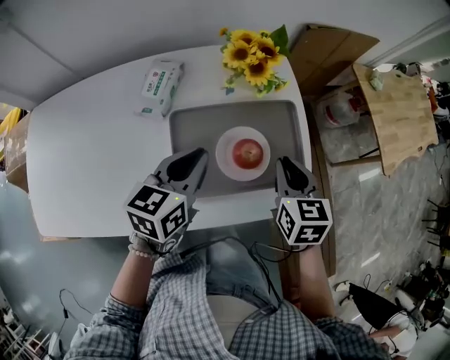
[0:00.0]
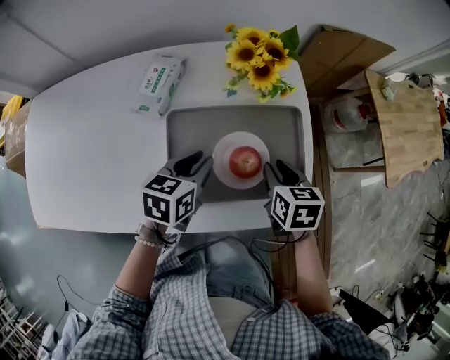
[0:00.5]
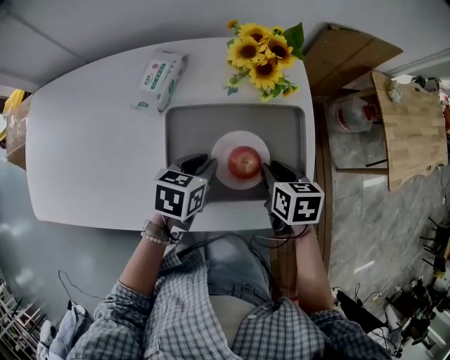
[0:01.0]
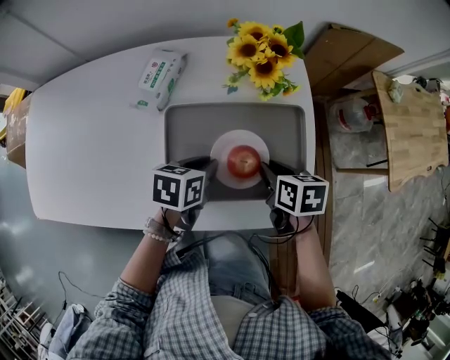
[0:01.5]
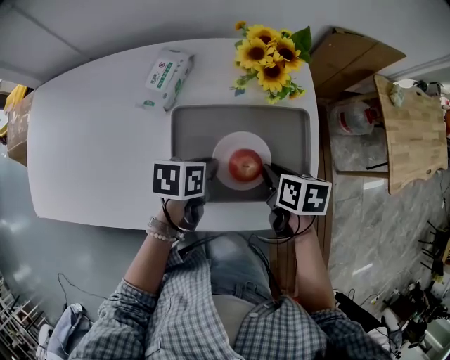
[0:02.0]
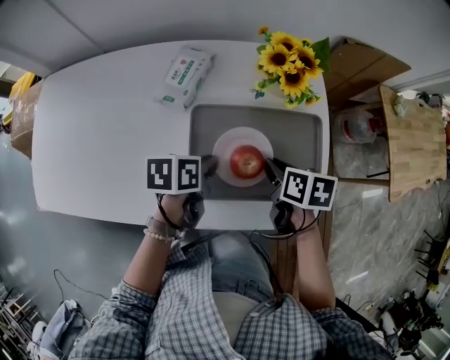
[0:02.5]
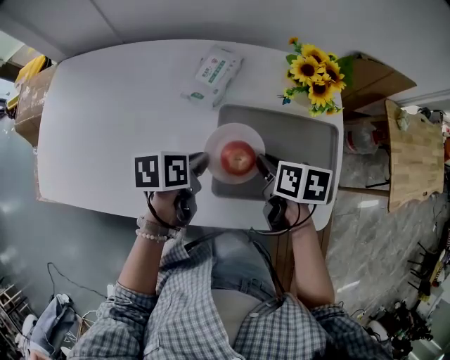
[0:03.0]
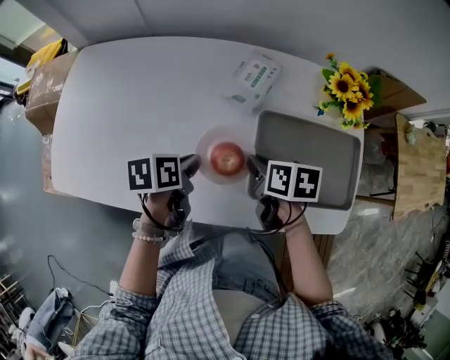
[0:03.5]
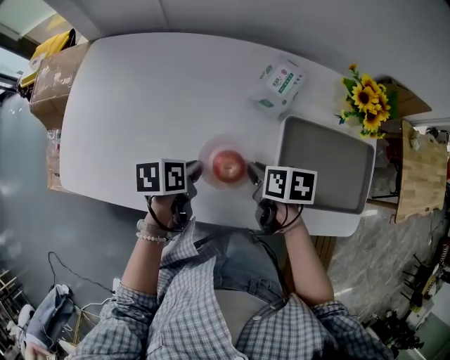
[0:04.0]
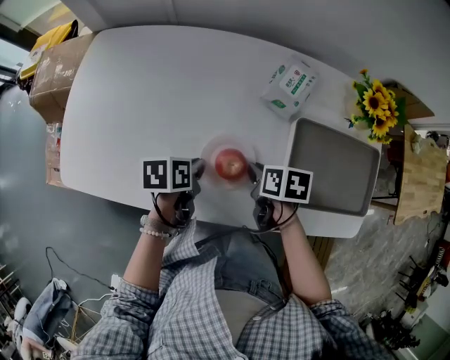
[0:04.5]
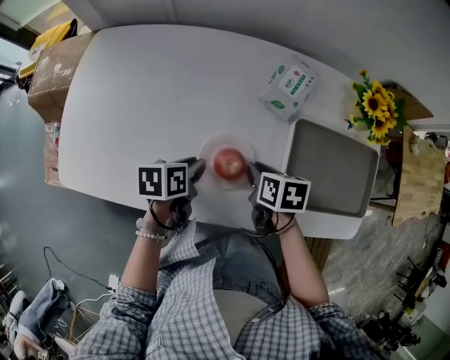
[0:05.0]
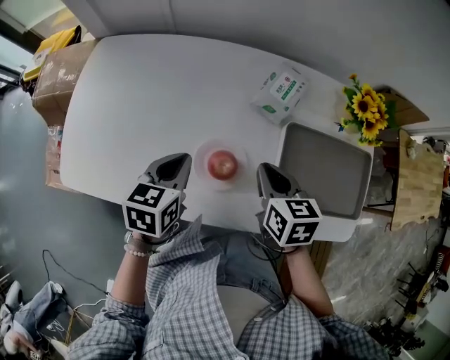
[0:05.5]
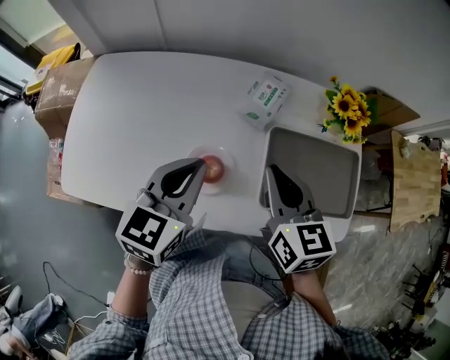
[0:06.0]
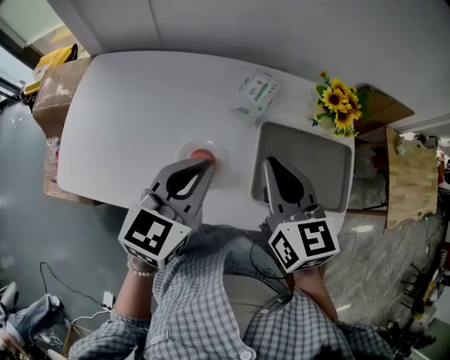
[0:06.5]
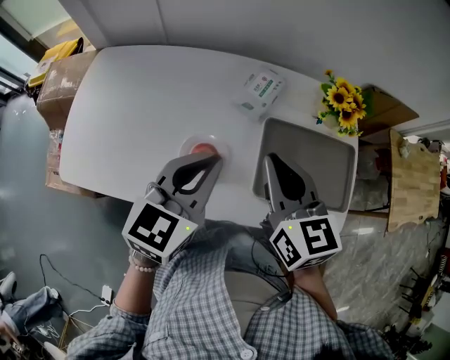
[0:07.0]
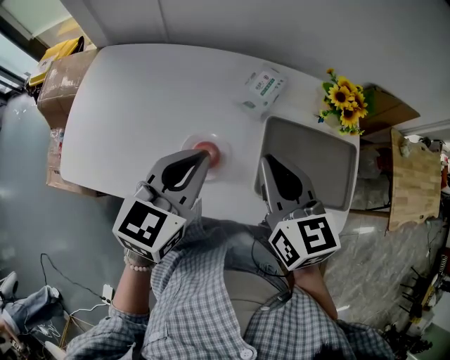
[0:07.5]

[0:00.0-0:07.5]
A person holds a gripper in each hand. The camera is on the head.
0:00.0 to 0:02.0: Both grippers travel together downward, roughly 10 cm. The right gripper rotates roughly 30 degrees, while the left gripper turns by about 40 degrees.
0:02.0 to 0:04.0: The two grippers go about 30 cm to the left.
0:04.0 to 0:05.5: The grippers both shift upward by some 10 cm. The right gripper swivels about 30 degrees. Meanwhile the left gripper rotates about 40 degrees.
0:05.5 to 0:07.5: The right gripper heads upward, covering about 15 cm, and swivels approximately 20 degrees; the left gripper shifts about 15 cm upward and to the right, and changes its angle by roughly 20 degrees.

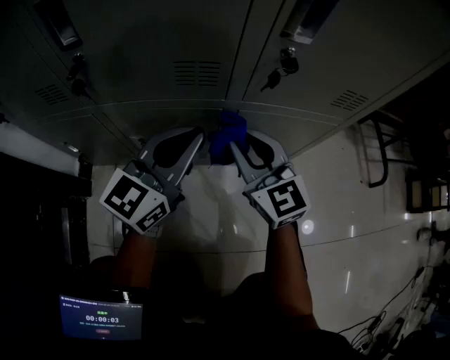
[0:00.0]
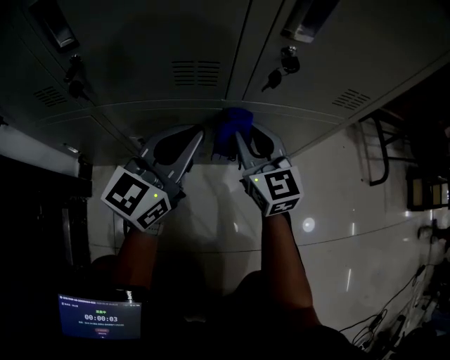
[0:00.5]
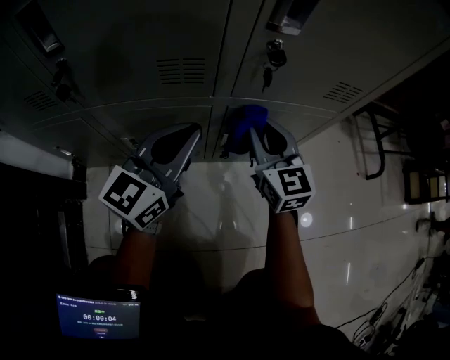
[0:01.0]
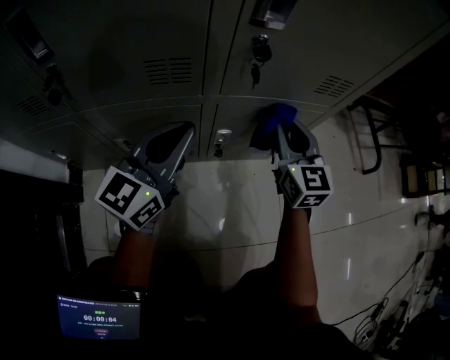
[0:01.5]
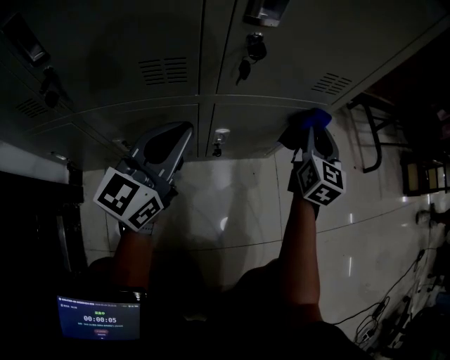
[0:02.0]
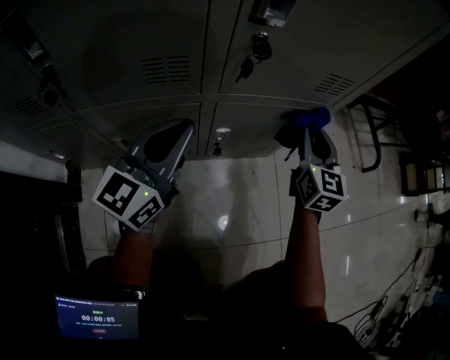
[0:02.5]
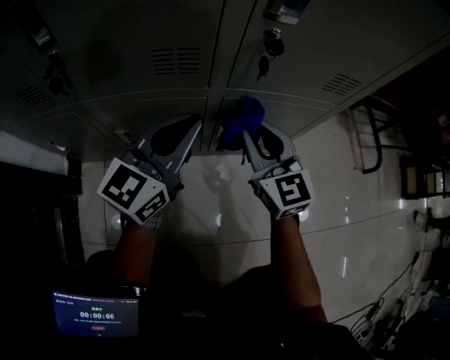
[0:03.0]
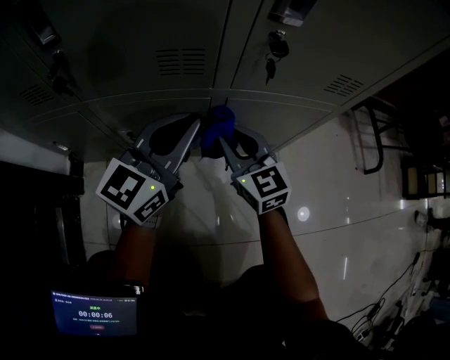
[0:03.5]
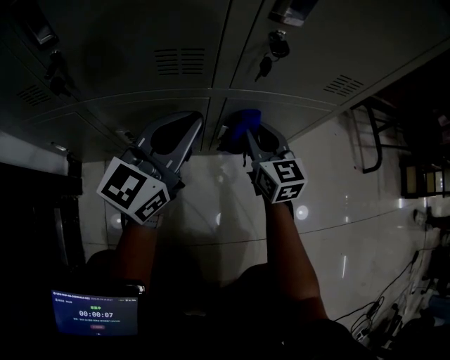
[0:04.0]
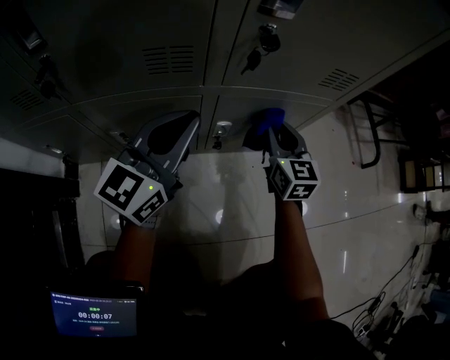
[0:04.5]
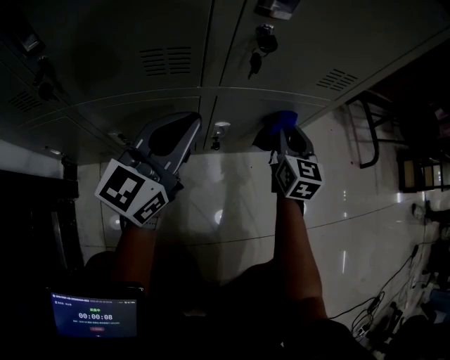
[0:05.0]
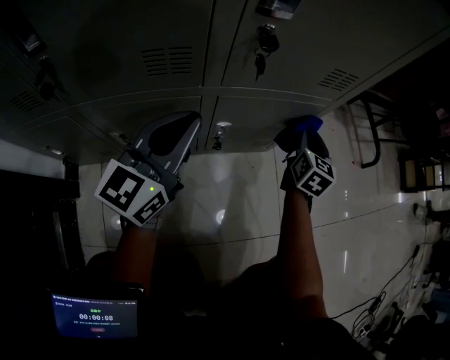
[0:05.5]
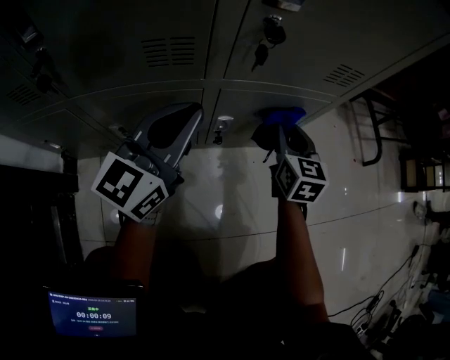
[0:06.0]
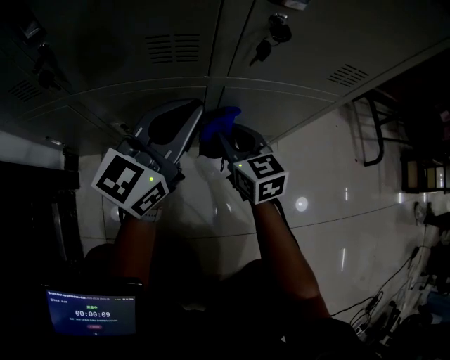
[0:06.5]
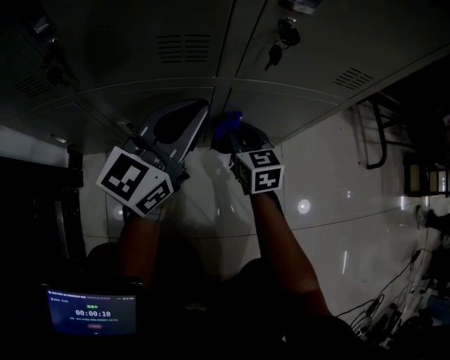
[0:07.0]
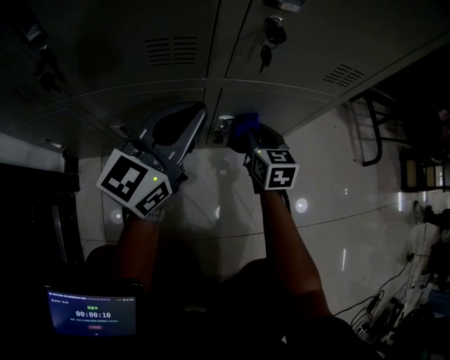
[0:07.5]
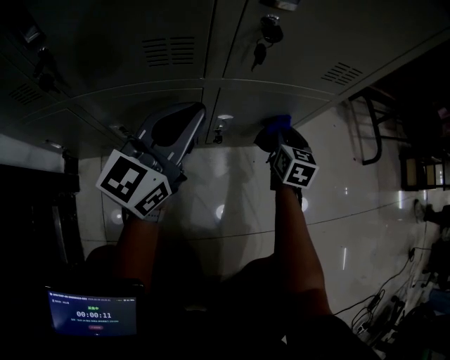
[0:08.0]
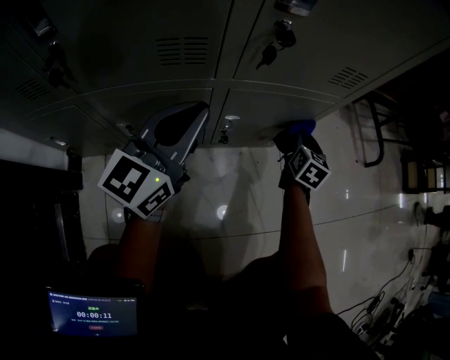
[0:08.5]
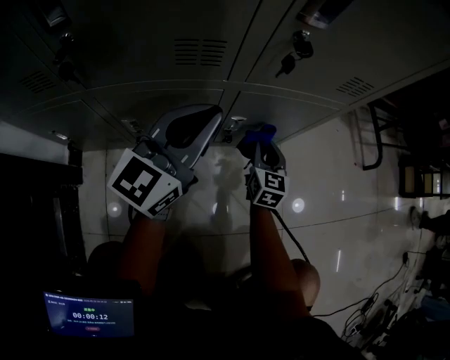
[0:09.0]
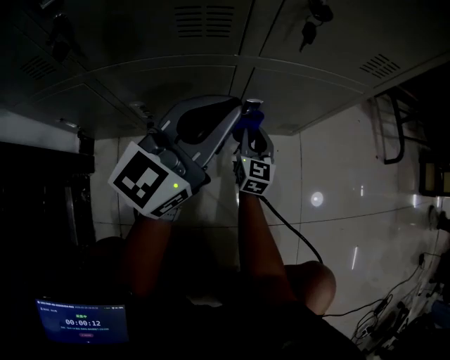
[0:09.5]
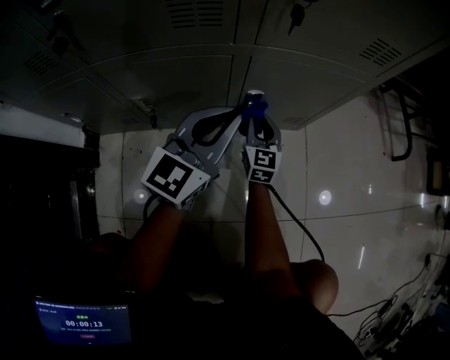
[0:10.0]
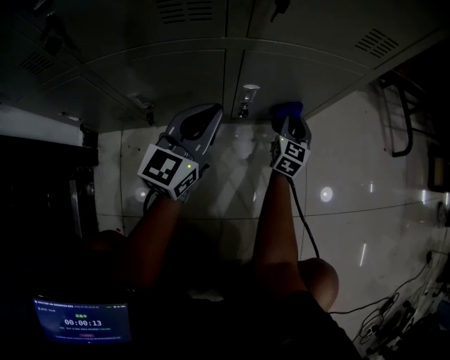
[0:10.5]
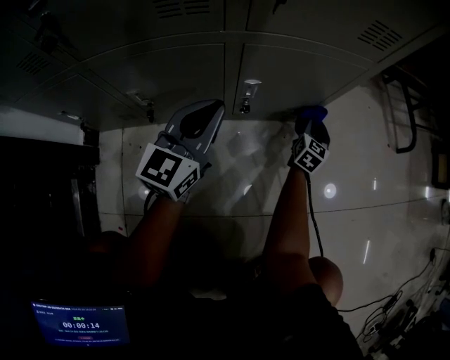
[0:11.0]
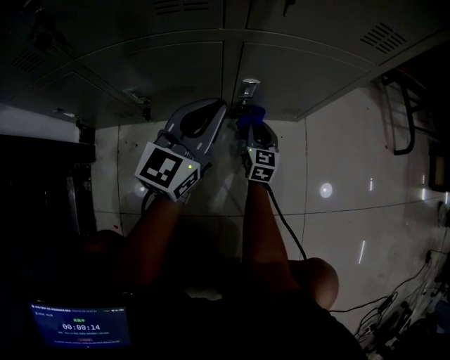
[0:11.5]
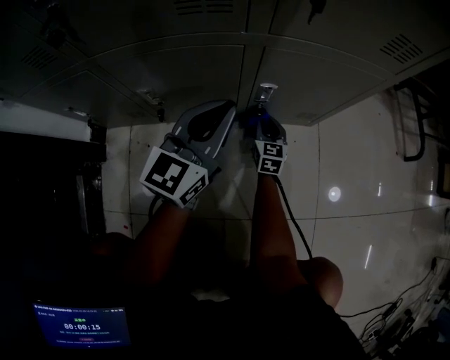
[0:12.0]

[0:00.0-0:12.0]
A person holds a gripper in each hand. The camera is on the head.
0:00.0 to 0:02.0: The right gripper heads to the right, covering about 25 cm, and changes its angle by approximately 50 degrees.
0:02.0 to 0:04.0: The right gripper heads to the left, covering approximately 20 cm, and rotates approximately 30 degrees.
0:04.0 to 0:06.0: The right gripper goes some 10 cm to the right, and rotates approximately 20 degrees.
0:06.0 to 0:08.0: The right gripper shifts approximately 10 cm downward, and moves about 15 cm to the left and comes back.
0:08.0 to 0:10.0: The left gripper heads downward, covering some 10 cm; the right gripper is displaced to the left, downward and backward by approximately 15 cm.
0:10.0 to 0:12.0: The right gripper heads downward, covering about 10 cm, and reaches some 20 cm to the right, then returns.

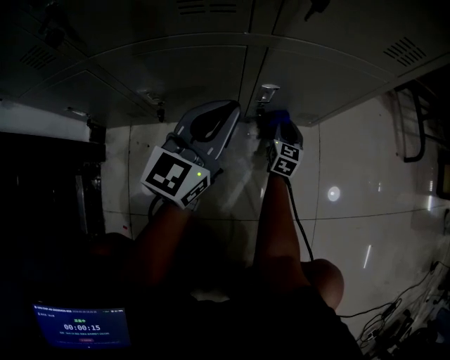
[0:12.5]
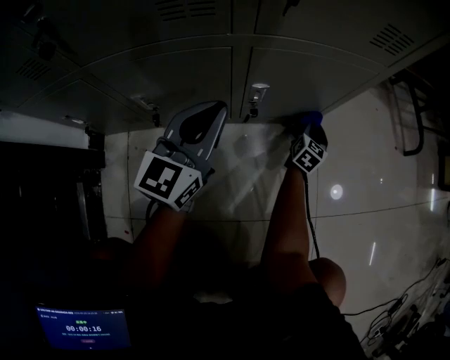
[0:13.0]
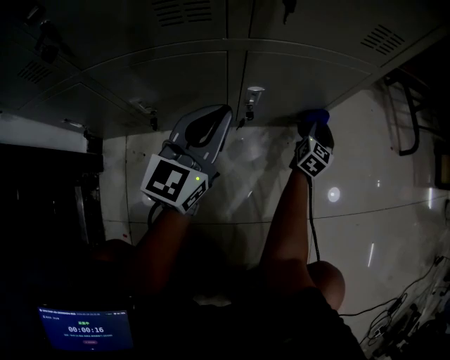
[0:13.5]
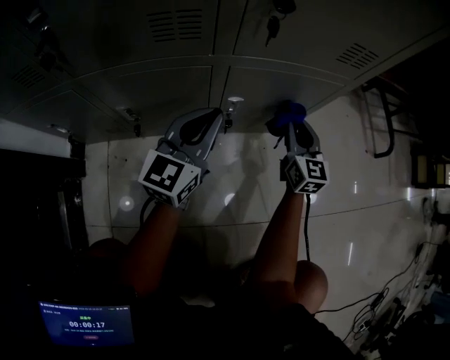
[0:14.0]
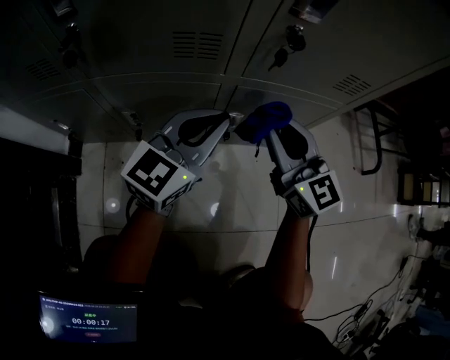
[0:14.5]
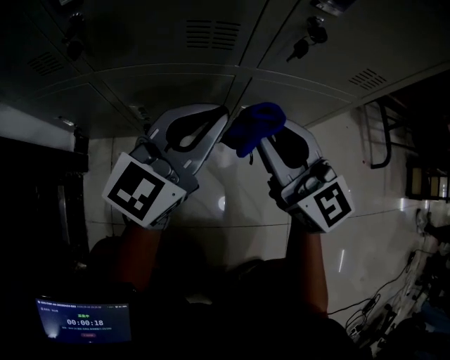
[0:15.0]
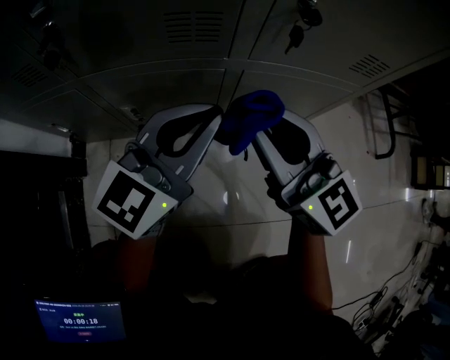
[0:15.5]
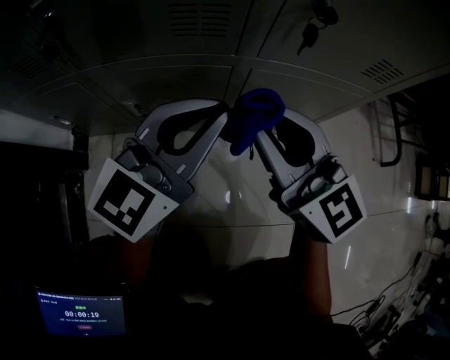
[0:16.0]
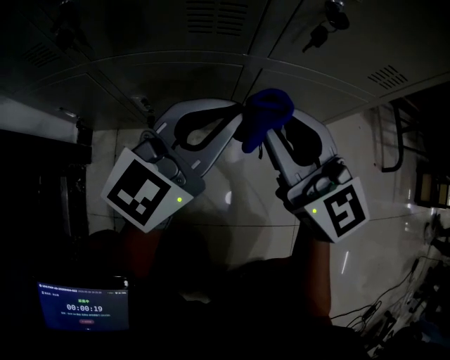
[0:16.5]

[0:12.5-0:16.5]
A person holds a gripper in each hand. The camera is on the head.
0:12.5 to 0:14.5: The right gripper shifts roughly 35 cm upward, and changes its angle by some 40 degrees, while the left gripper heads upward, covering about 5 cm.
0:14.5 to 0:16.5: The right gripper moves to the left, approximately 5 cm.

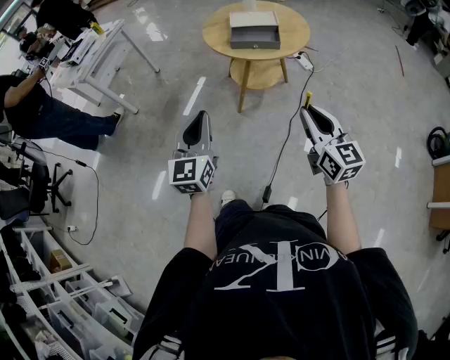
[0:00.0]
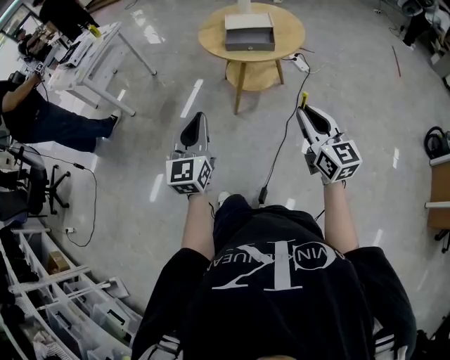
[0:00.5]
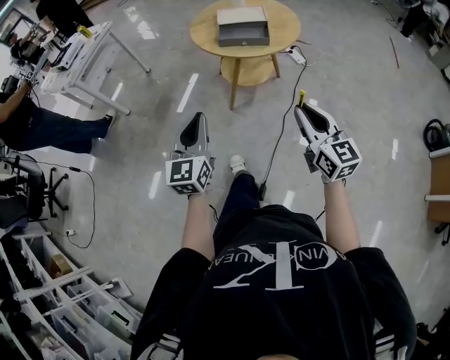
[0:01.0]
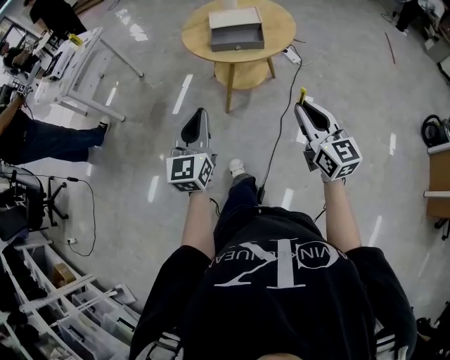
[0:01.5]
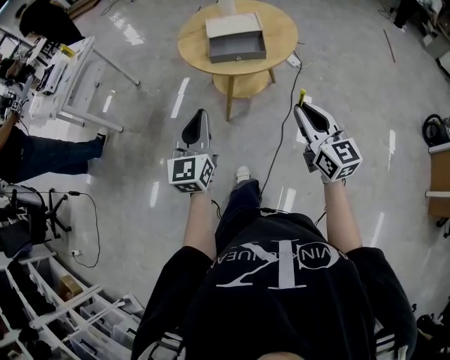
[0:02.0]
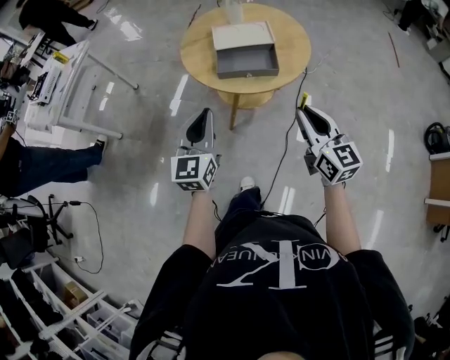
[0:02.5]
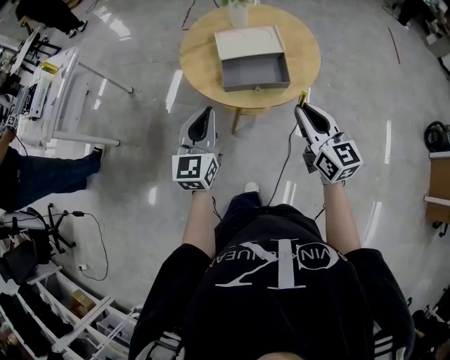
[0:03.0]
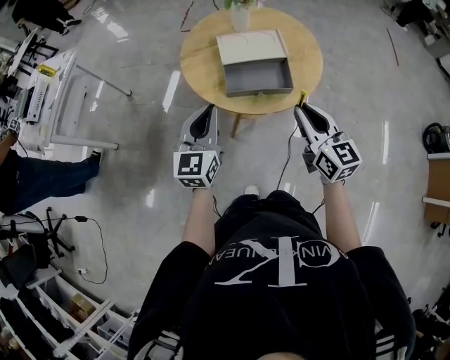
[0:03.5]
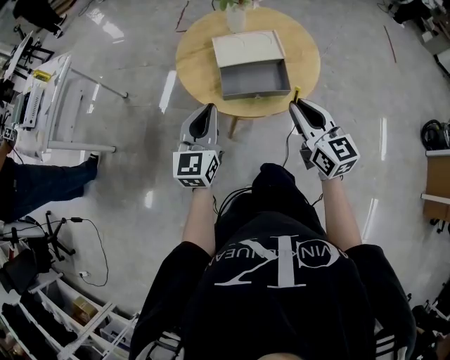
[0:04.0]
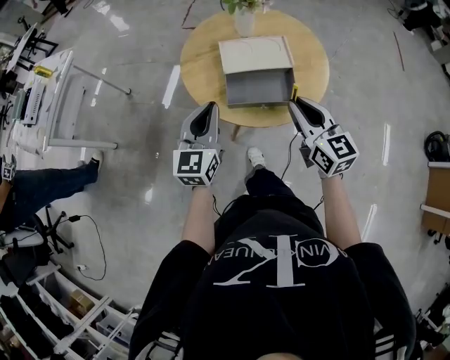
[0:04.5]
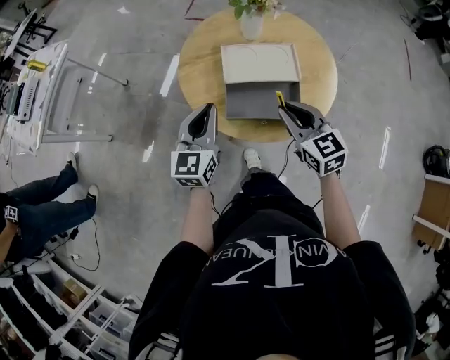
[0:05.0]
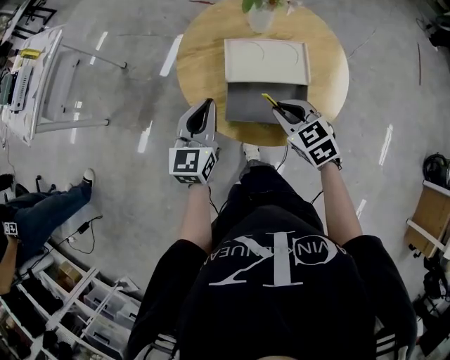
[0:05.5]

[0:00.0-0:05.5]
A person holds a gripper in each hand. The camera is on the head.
0:00.0 to 0:02.0: Both grippers move forward, approximately 15 cm.
0:02.0 to 0:03.5: The two grippers go roughly 20 cm forward.
0:03.5 to 0:05.5: The two grippers go about 20 cm forward and downward. The right gripper tips its fingers downward by approximately 40 degrees.
